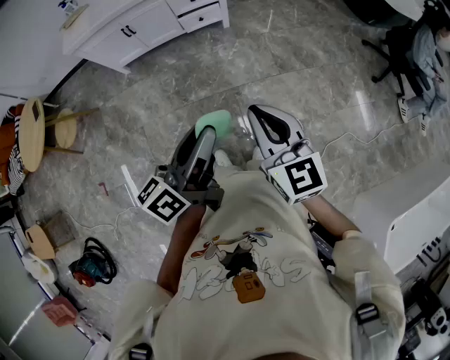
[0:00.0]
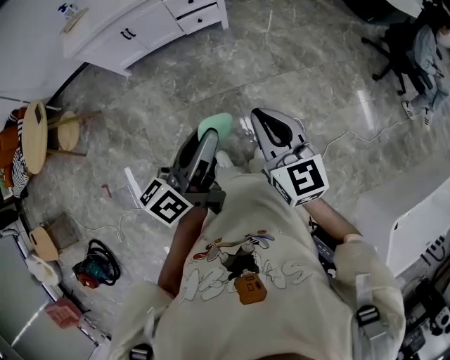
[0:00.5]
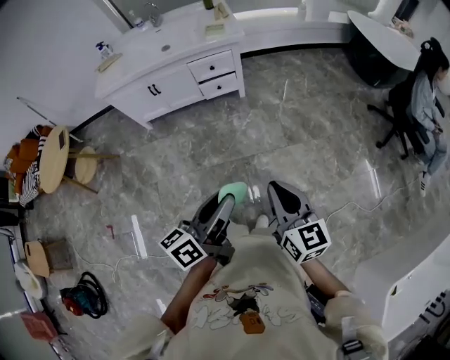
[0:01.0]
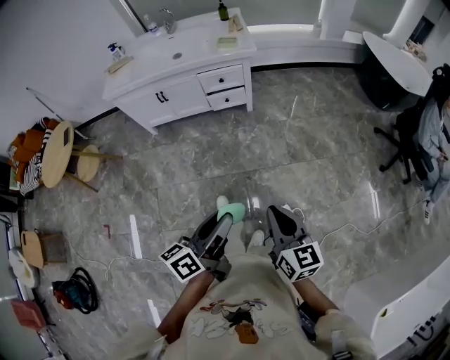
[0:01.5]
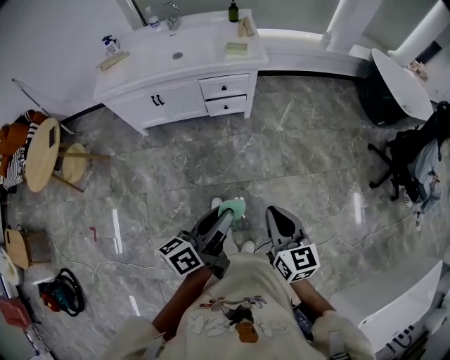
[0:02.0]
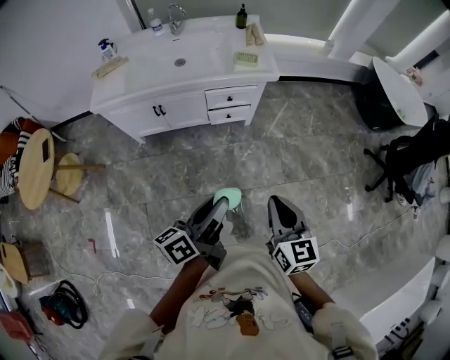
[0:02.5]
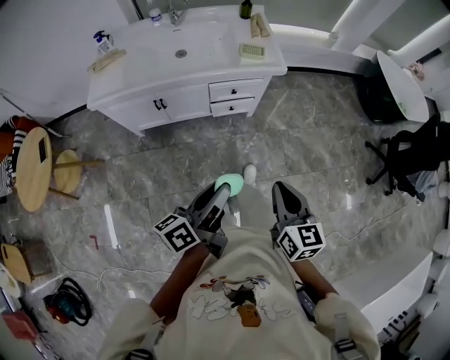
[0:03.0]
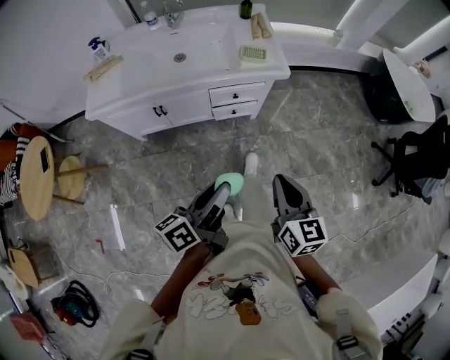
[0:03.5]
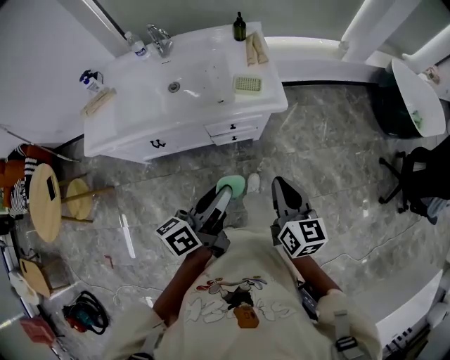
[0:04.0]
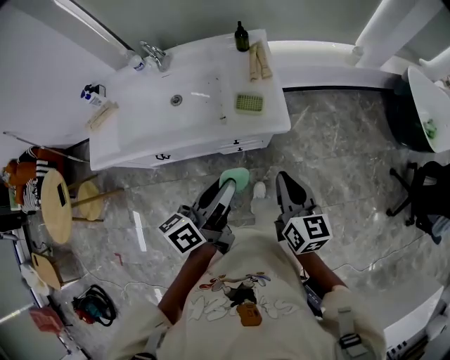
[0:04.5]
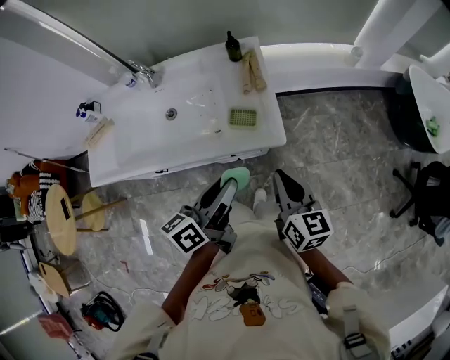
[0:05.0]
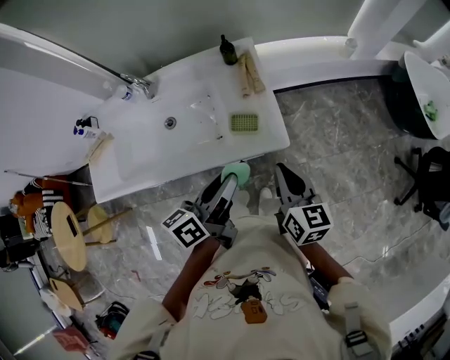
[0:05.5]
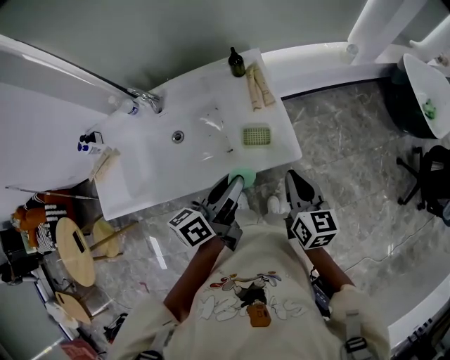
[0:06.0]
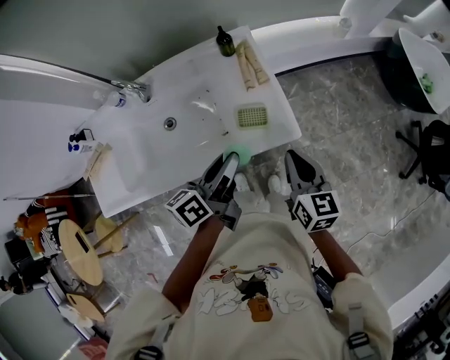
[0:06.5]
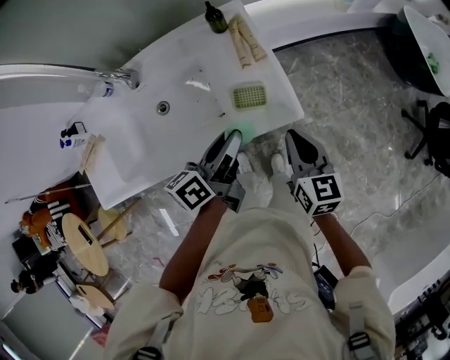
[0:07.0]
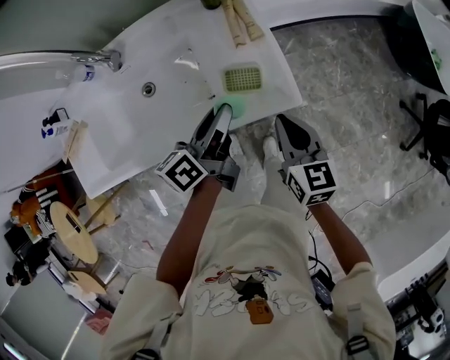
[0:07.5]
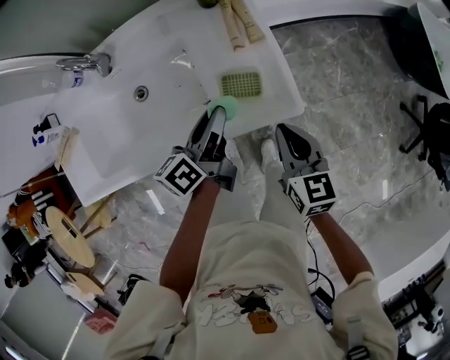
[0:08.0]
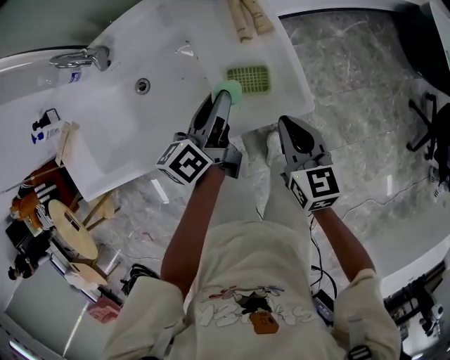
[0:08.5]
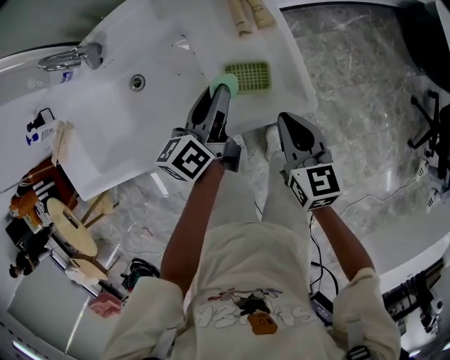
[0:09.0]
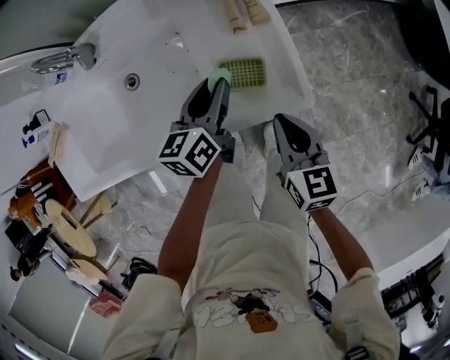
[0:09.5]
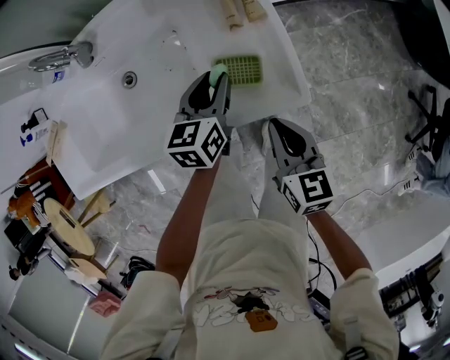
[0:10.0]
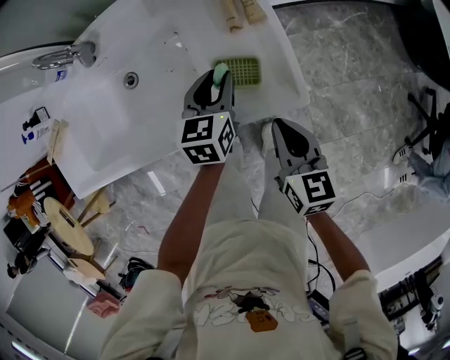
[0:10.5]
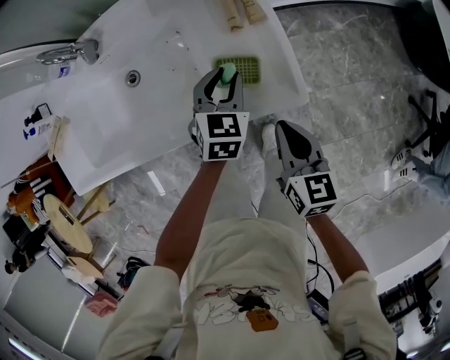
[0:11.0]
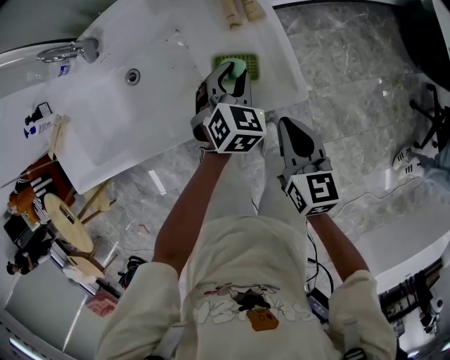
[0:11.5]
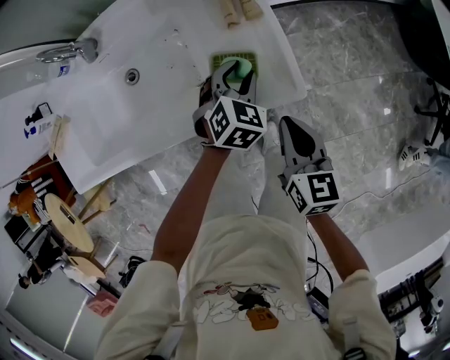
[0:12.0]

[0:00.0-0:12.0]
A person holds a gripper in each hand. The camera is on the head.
0:00.0 to 0:02.0: The right gripper travels forward and downward by about 15 cm, while the left gripper moves forward, approximately 15 cm.
0:02.0 to 0:04.0: The two grippers go roughly 40 cm forward.
0:04.0 to 0:06.0: The two grippers go some 25 cm forward.
0:06.0 to 0:08.0: The right gripper shifts approximately 10 cm downward. The left gripper heads downward and forward, covering roughly 15 cm.
0:08.0 to 0:10.0: The left gripper moves downward, about 5 cm, and turns by roughly 40 degrees.
0:10.0 to 0:12.0: The left gripper is displaced to the right by approximately 5 cm, and rotates around the line of its fingers by approximately 40 degrees, clockwise from behind.

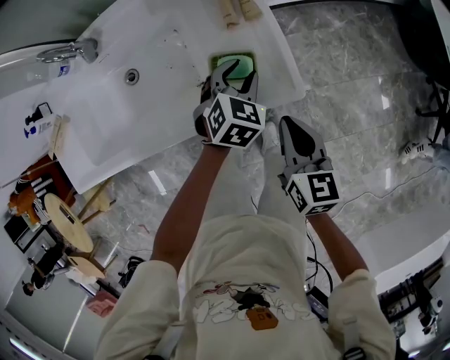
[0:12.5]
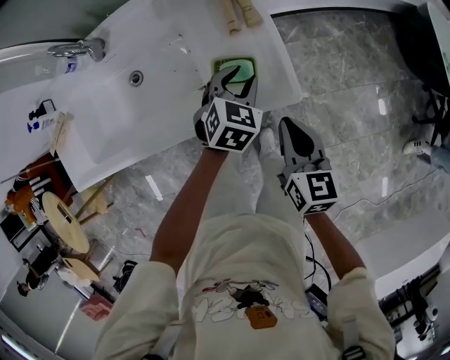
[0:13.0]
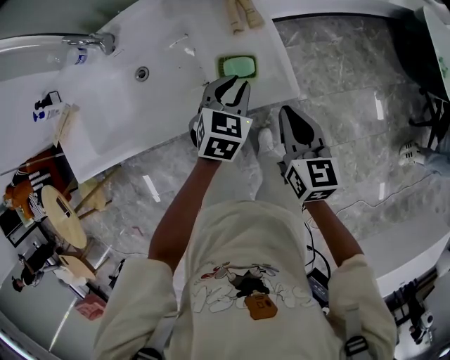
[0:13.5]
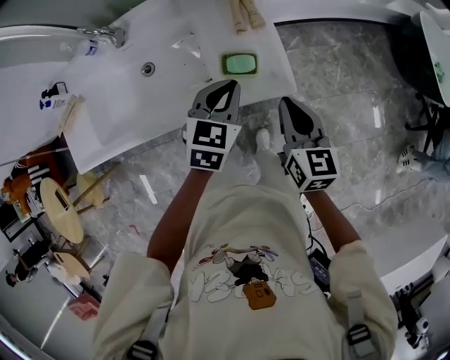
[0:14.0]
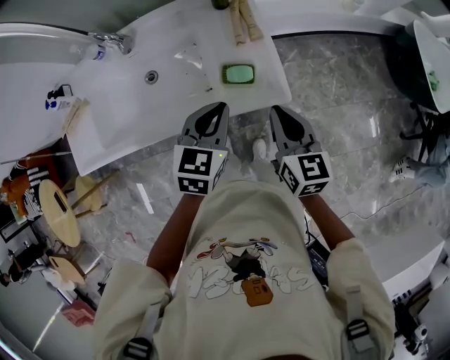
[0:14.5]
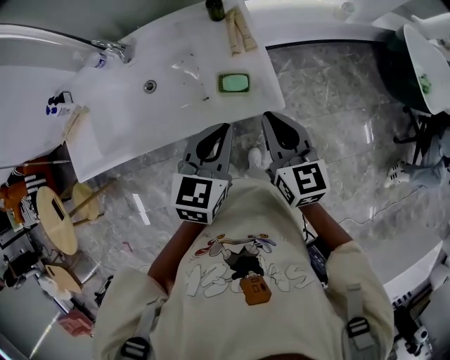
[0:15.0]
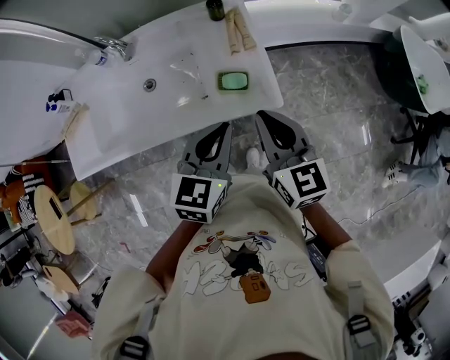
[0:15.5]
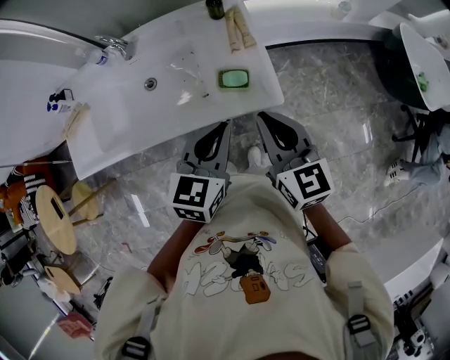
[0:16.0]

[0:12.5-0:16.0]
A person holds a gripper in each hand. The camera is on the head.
0:12.5 to 0:14.5: The left gripper heads upward and backward, covering some 20 cm, turns by about 20 degrees, and closes its fingers. Meanwhile the right gripper moves upward, approximately 10 cm.
0:14.5 to 0:16.0: The left gripper shifts approximately 10 cm upward and backward. Meanwhile the right gripper moves upward, approximately 10 cm.

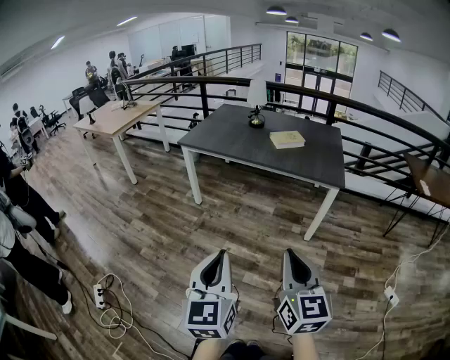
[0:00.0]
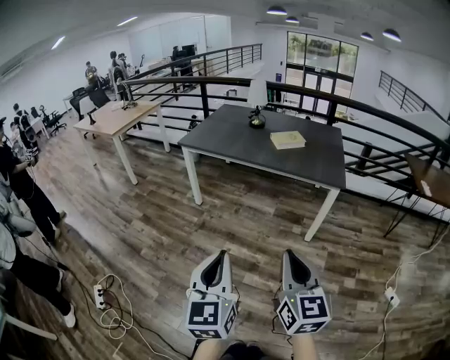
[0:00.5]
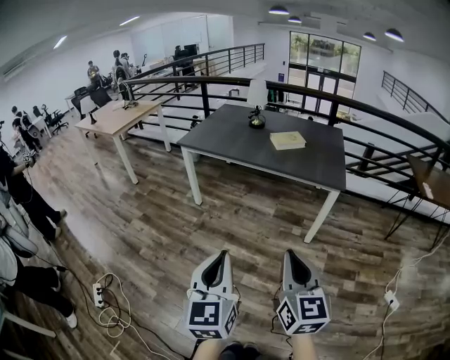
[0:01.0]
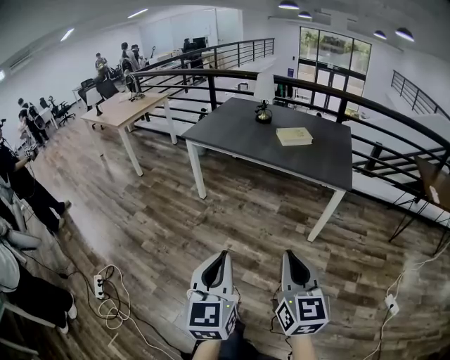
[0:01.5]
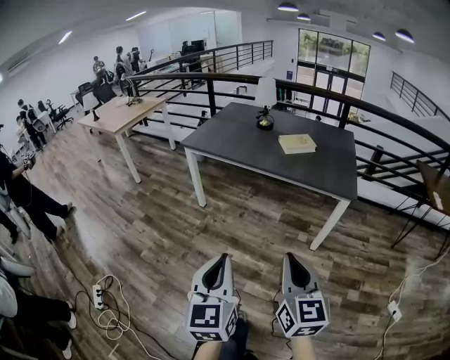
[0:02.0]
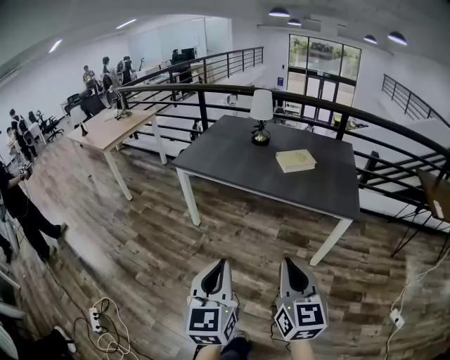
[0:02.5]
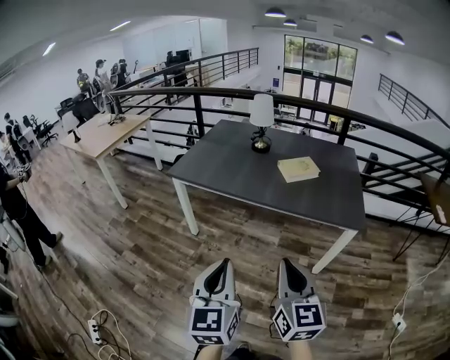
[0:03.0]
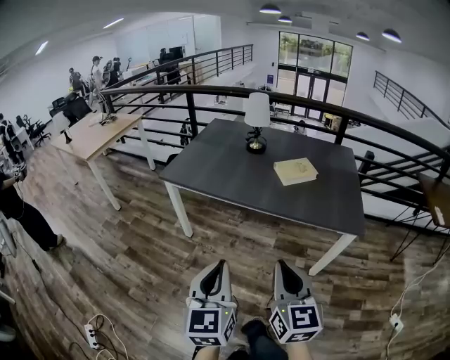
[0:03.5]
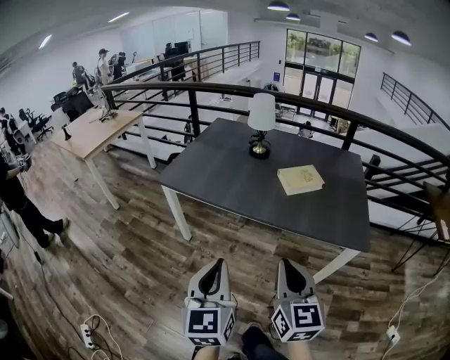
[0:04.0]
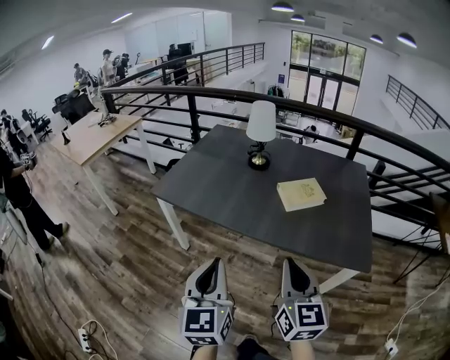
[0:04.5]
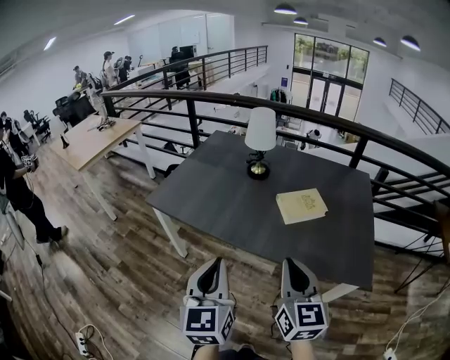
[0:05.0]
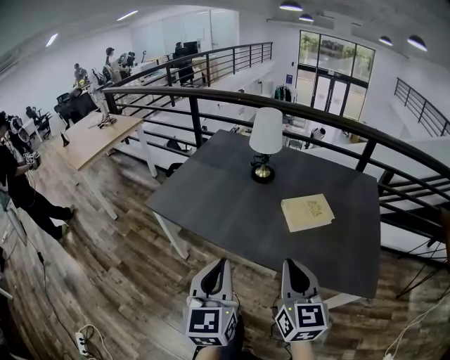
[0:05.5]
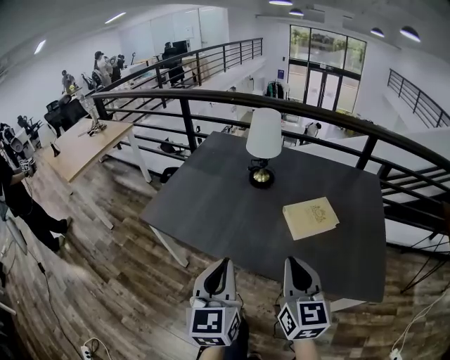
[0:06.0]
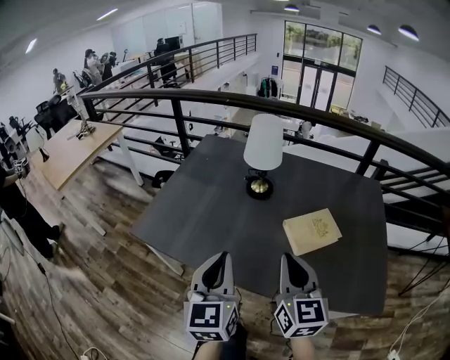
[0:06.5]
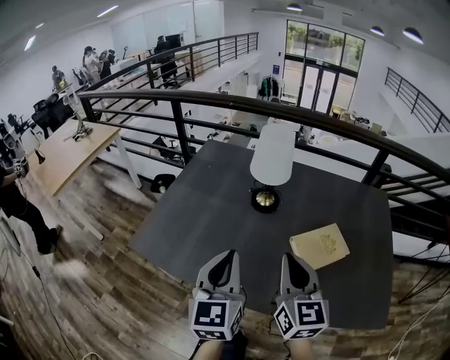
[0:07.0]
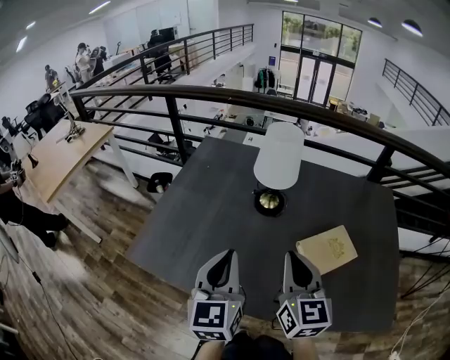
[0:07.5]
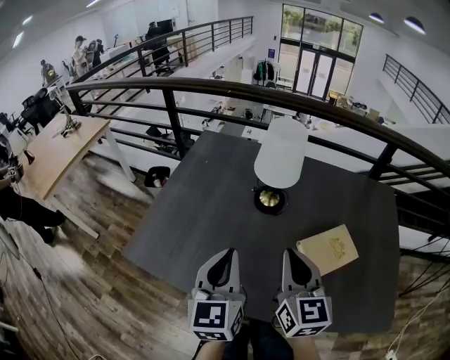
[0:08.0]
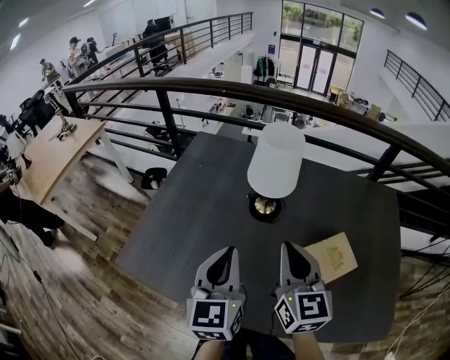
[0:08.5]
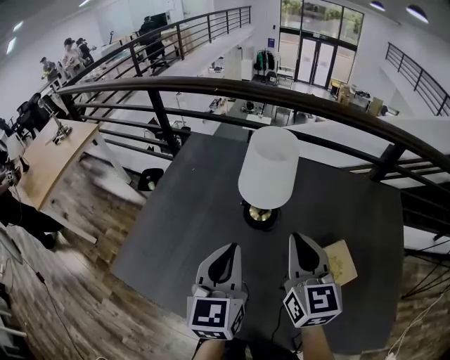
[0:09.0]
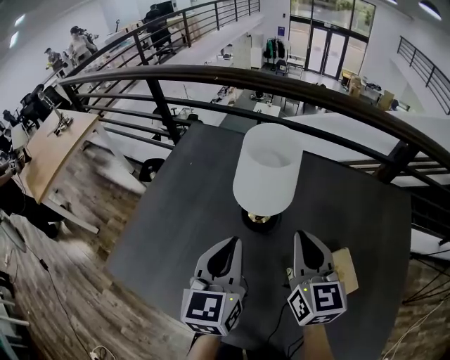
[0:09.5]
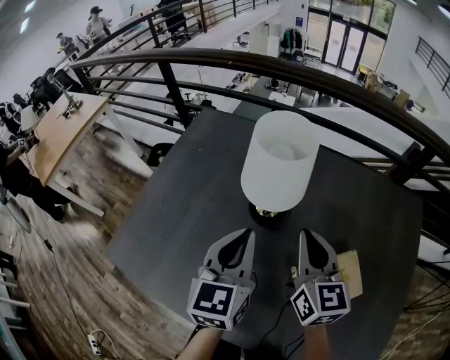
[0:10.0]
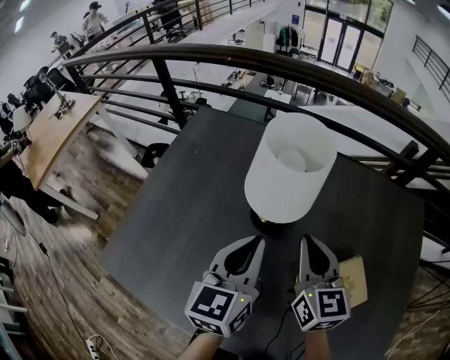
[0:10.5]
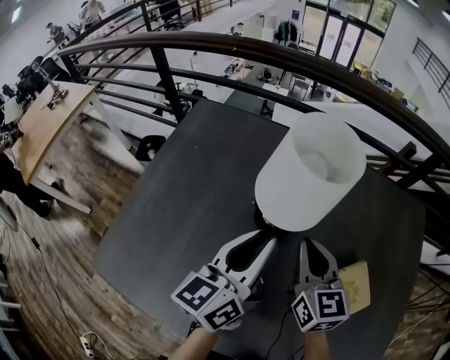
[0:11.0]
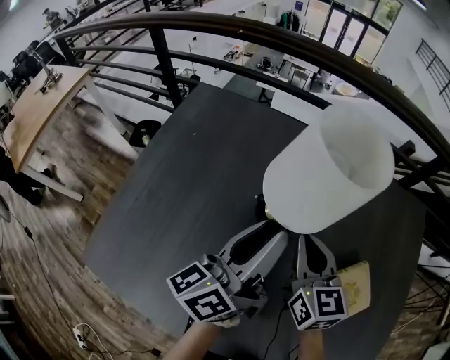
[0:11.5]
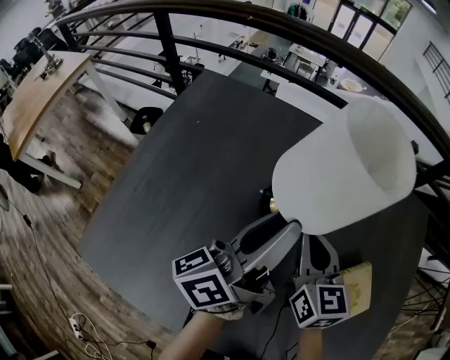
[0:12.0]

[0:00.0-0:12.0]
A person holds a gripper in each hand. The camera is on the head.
0:00.0 to 0:02.0: The two grippers go roughly 10 cm forward.
0:02.0 to 0:04.0: The grippers both shift forward by about 30 cm.
0:04.0 to 0:06.0: Both grippers move forward, some 25 cm.
0:06.0 to 0:08.0: The two grippers go some 25 cm forward.
0:08.0 to 0:10.0: Both grippers move forward and to the right, about 20 cm.
0:10.0 to 0:12.0: The left gripper is displaced forward by some 5 cm, rotates around the line of its fingers by roughly 60 degrees, counterclockwise from behind, and opens up. The right gripper goes roughly 10 cm downward and to the left.
